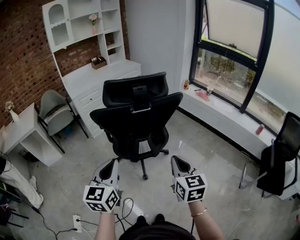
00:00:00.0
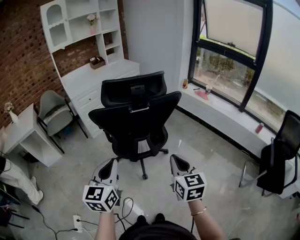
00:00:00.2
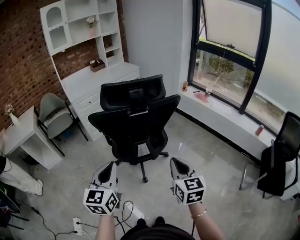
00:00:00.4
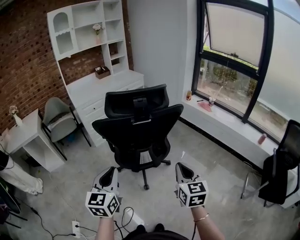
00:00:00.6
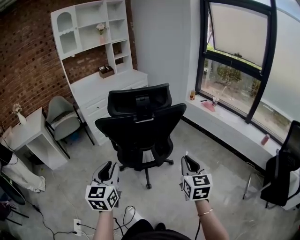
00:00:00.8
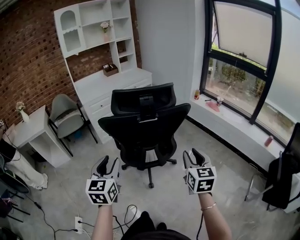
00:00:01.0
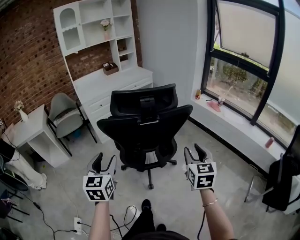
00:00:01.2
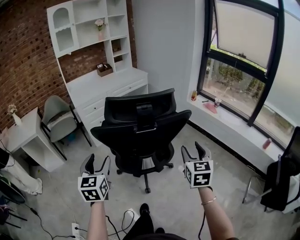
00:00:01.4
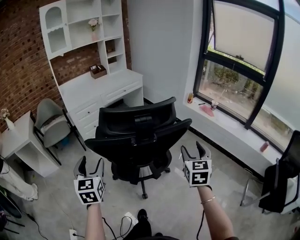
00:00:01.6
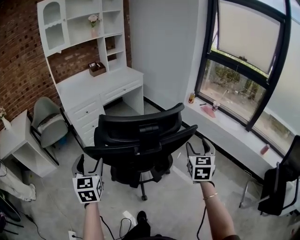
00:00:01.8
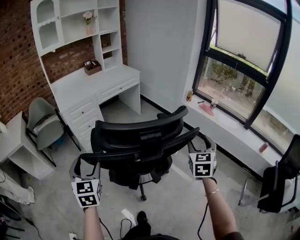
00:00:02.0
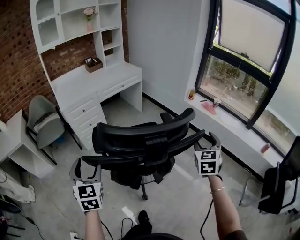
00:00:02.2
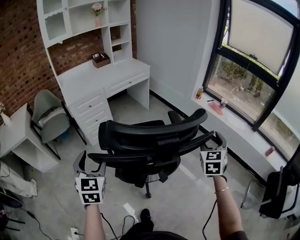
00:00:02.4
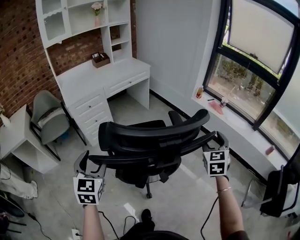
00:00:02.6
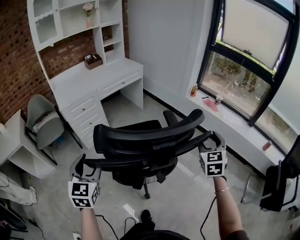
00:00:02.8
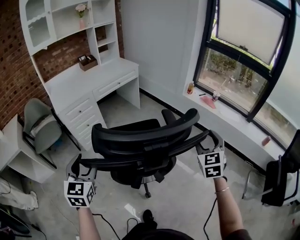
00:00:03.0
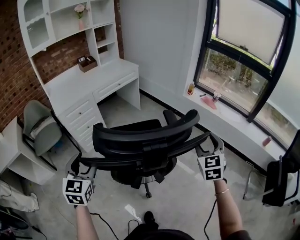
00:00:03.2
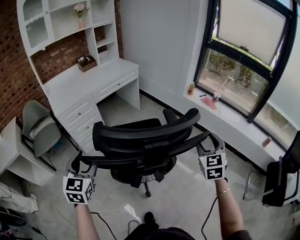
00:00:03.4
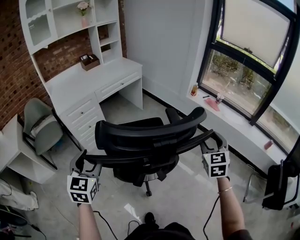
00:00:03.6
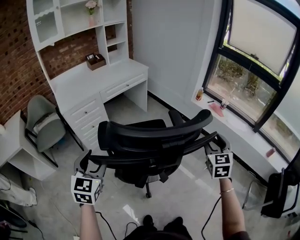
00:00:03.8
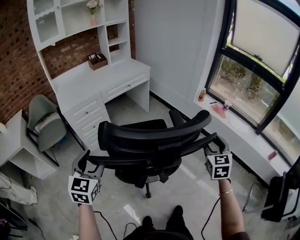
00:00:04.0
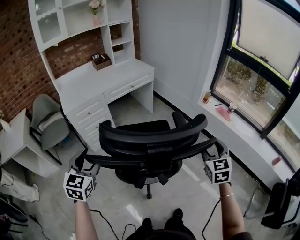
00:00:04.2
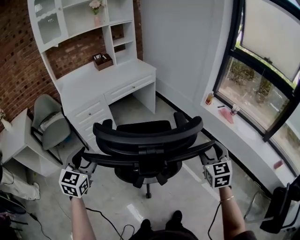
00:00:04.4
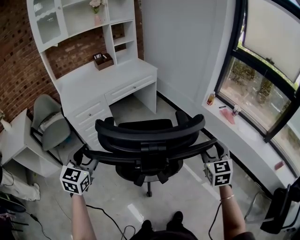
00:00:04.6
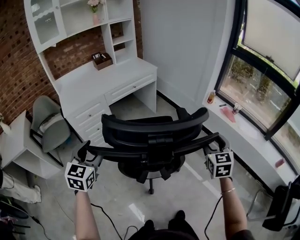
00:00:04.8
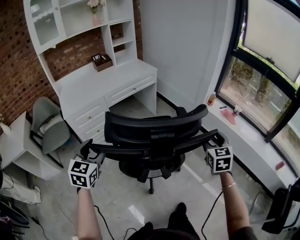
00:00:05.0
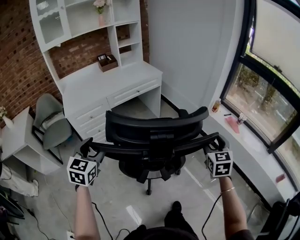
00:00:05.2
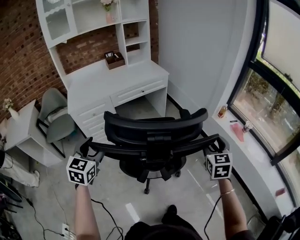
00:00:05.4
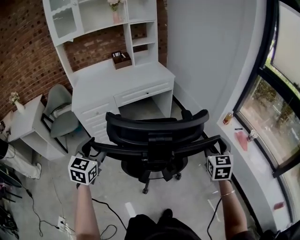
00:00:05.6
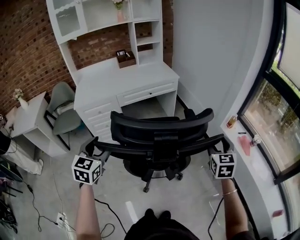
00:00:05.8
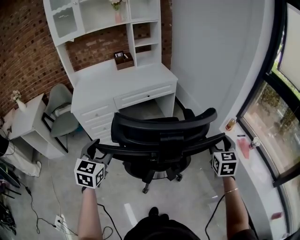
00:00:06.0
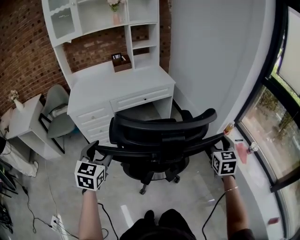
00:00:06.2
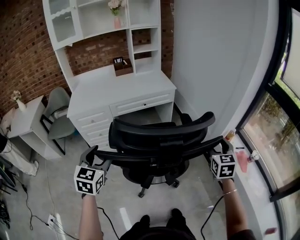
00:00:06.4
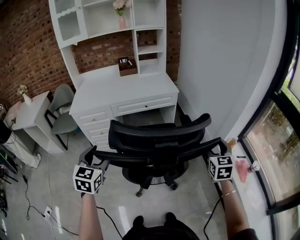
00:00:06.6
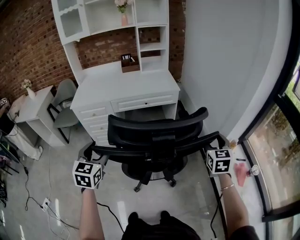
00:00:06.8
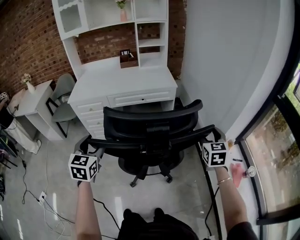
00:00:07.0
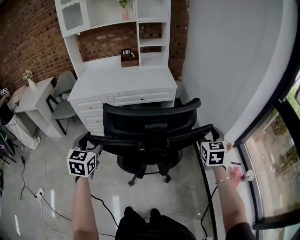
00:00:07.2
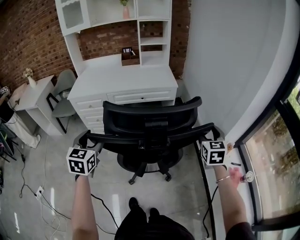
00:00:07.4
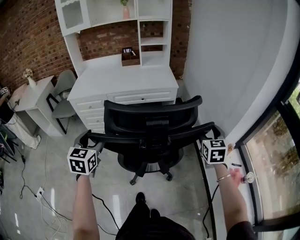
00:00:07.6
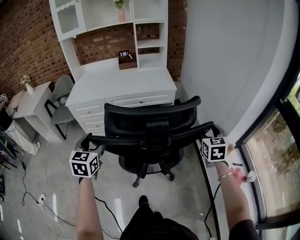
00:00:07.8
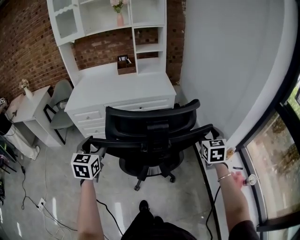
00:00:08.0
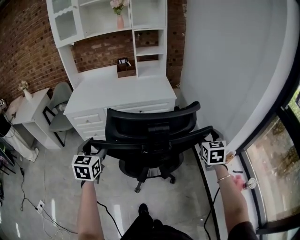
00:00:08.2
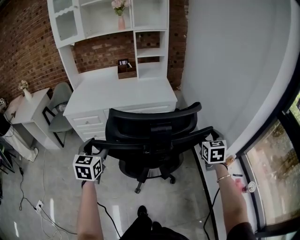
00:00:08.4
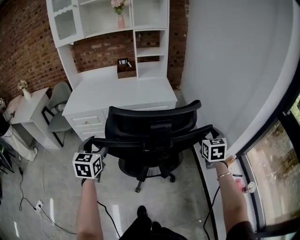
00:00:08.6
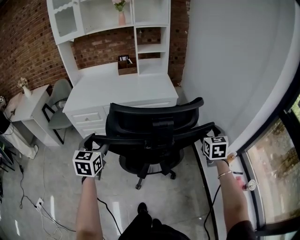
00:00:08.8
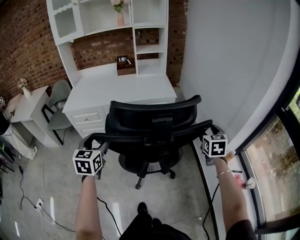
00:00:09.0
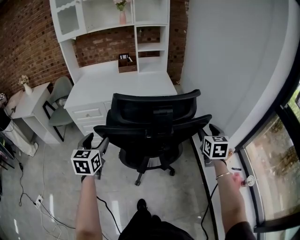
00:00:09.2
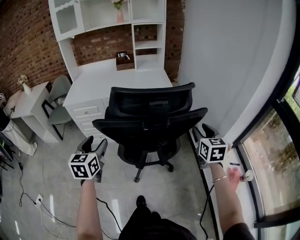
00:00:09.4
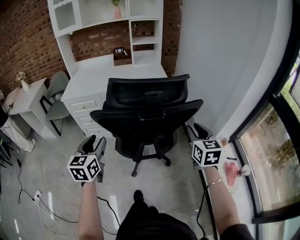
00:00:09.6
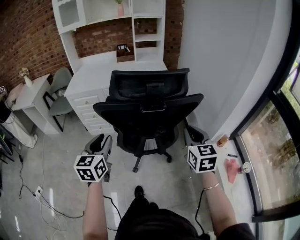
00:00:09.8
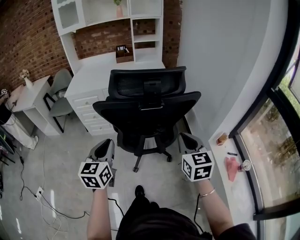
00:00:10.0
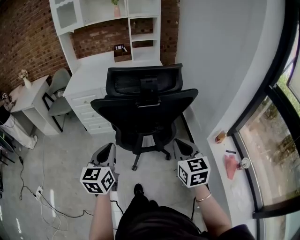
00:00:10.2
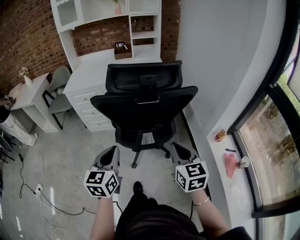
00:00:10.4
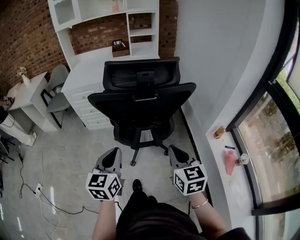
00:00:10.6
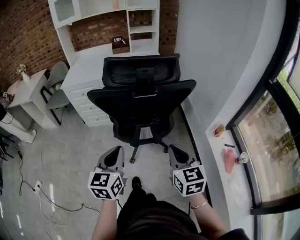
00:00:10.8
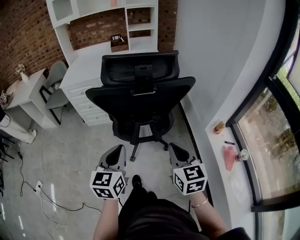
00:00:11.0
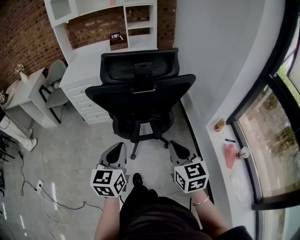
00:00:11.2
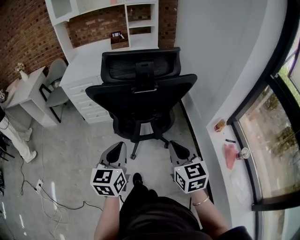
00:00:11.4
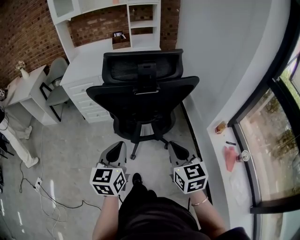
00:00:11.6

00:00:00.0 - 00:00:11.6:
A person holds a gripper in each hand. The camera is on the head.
00:00:00.0 - 00:00:01.4: The left gripper travels forward and to the left by approximately 15 cm, and opens its fingers; the right gripper heads forward and to the right, covering approximately 15 cm, and opens its fingers.
00:00:01.4 - 00:00:02.8: The two grippers go approximately 20 cm forward.
00:00:02.8 - 00:00:04.4: The grippers both shift forward by roughly 15 cm.
00:00:04.4 - 00:00:05.8: The left gripper is displaced forward and to the right by approximately 20 cm, while the right gripper goes some 25 cm forward.
00:00:05.8 - 00:00:07.2: The right gripper heads forward and to the right, covering approximately 30 cm; the left gripper moves to the right and forward, roughly 20 cm, and turns by some 20 degrees.
00:00:07.2 - 00:00:08.8: The two grippers go some 10 cm forward.
00:00:08.8 - 00:00:10.2: The right gripper is displaced backward and to the left by approximately 25 cm, and closes its fingers. The left gripper heads backward and to the right, covering about 20 cm, and closes its fingers.
00:00:10.2 - 00:00:11.6: The left gripper moves to the right, some 5 cm.

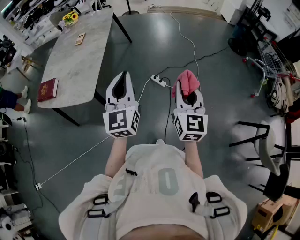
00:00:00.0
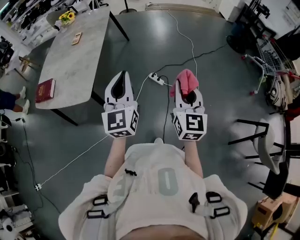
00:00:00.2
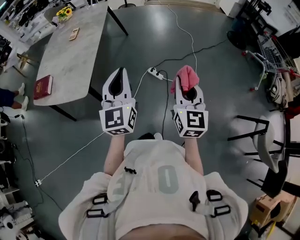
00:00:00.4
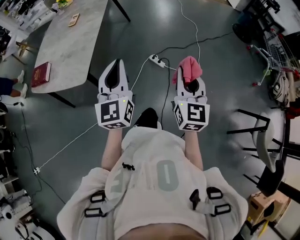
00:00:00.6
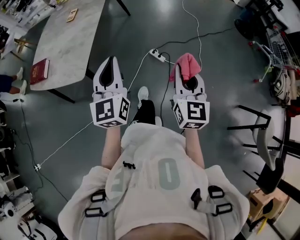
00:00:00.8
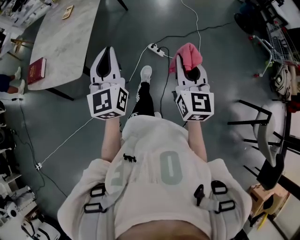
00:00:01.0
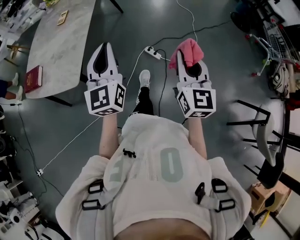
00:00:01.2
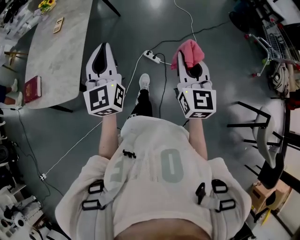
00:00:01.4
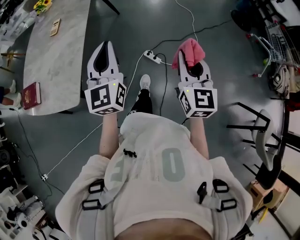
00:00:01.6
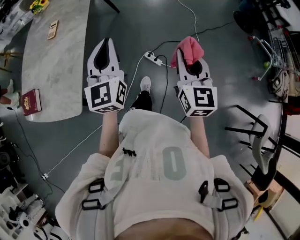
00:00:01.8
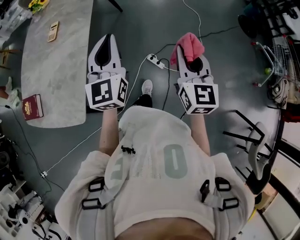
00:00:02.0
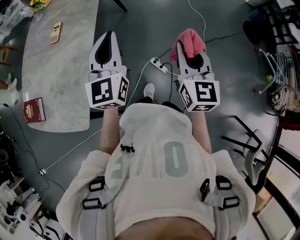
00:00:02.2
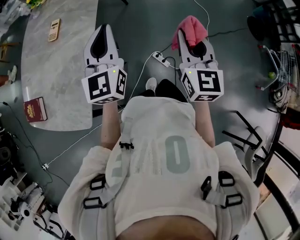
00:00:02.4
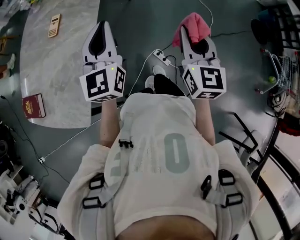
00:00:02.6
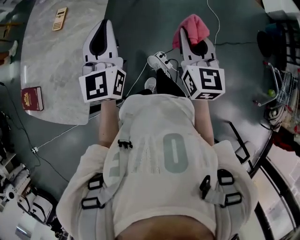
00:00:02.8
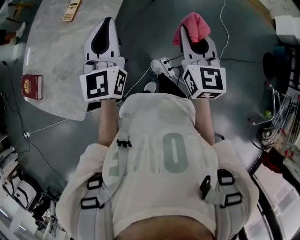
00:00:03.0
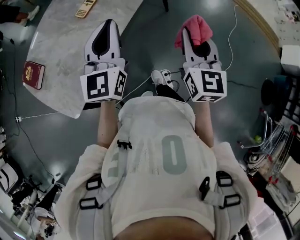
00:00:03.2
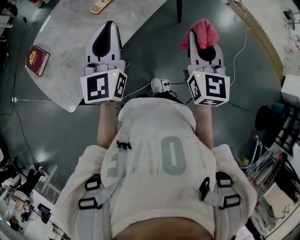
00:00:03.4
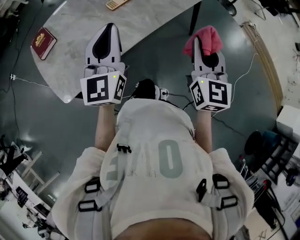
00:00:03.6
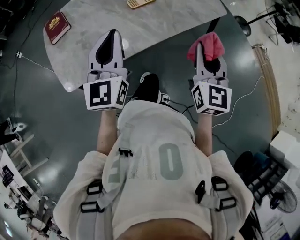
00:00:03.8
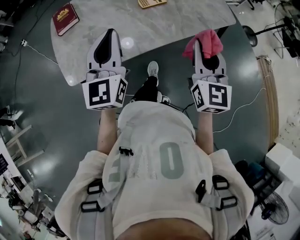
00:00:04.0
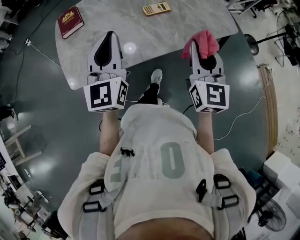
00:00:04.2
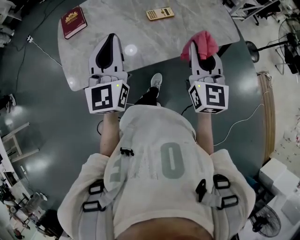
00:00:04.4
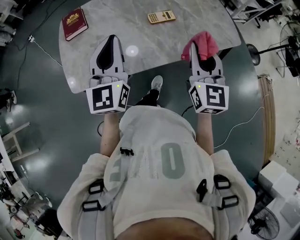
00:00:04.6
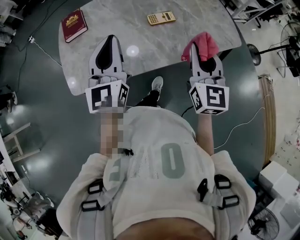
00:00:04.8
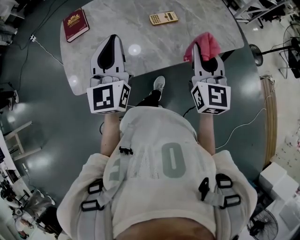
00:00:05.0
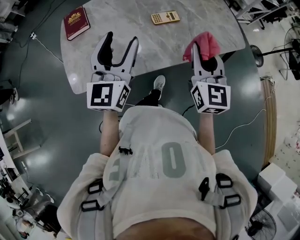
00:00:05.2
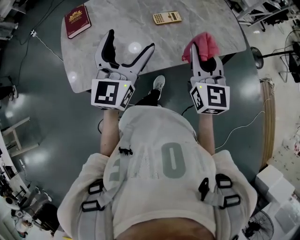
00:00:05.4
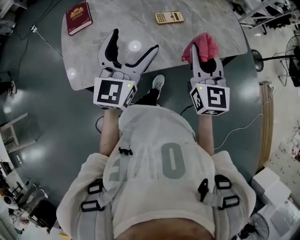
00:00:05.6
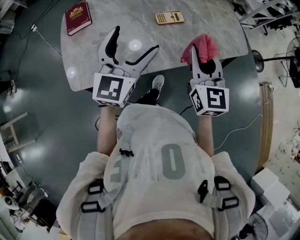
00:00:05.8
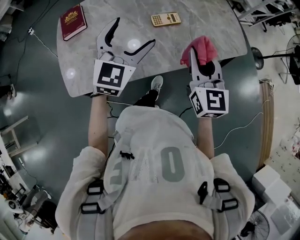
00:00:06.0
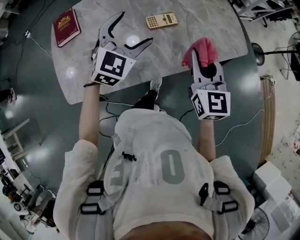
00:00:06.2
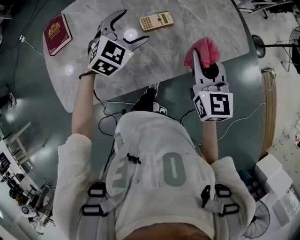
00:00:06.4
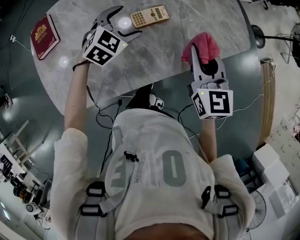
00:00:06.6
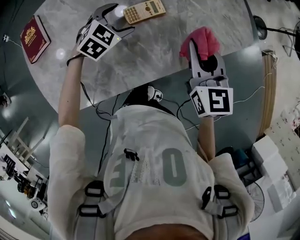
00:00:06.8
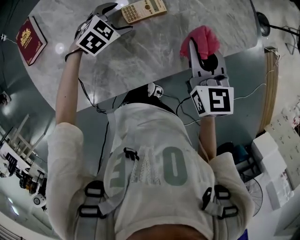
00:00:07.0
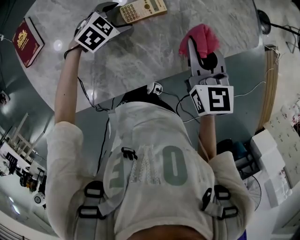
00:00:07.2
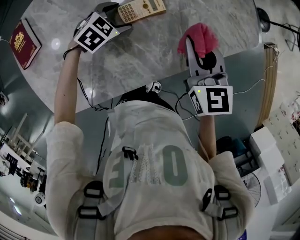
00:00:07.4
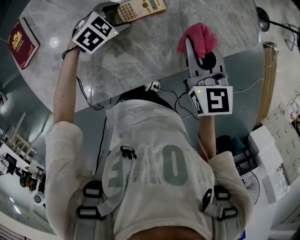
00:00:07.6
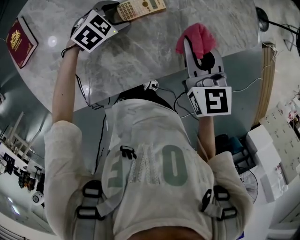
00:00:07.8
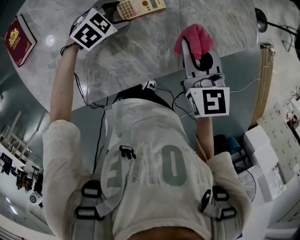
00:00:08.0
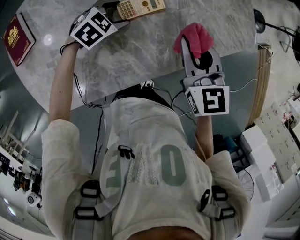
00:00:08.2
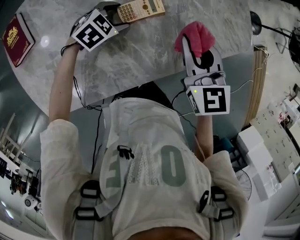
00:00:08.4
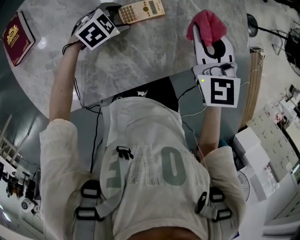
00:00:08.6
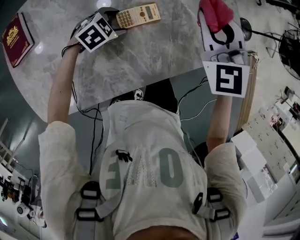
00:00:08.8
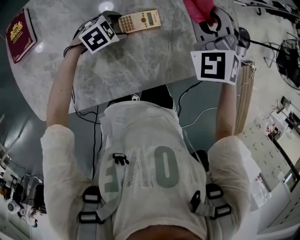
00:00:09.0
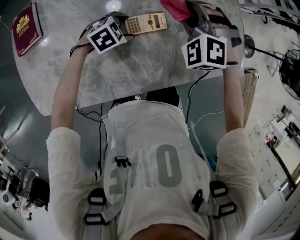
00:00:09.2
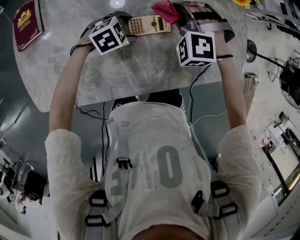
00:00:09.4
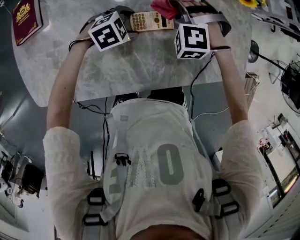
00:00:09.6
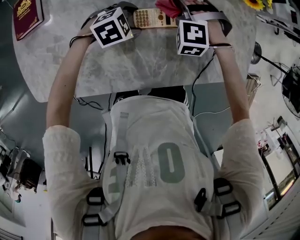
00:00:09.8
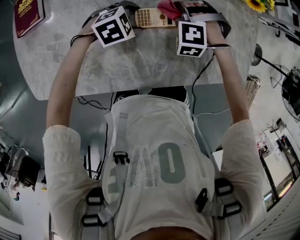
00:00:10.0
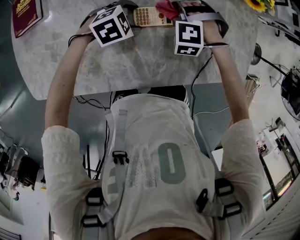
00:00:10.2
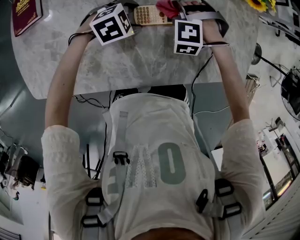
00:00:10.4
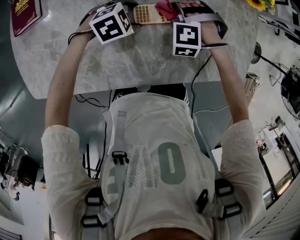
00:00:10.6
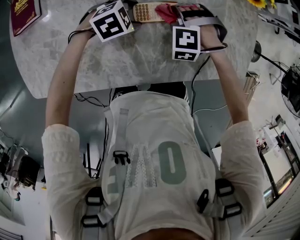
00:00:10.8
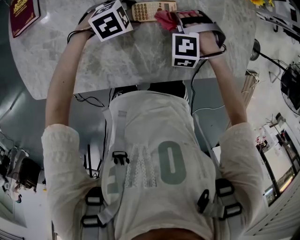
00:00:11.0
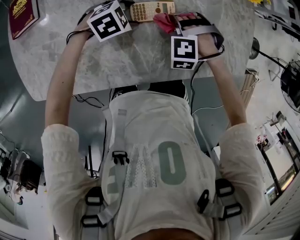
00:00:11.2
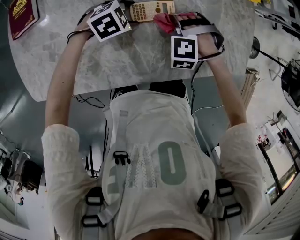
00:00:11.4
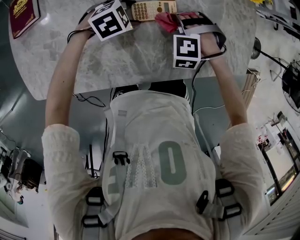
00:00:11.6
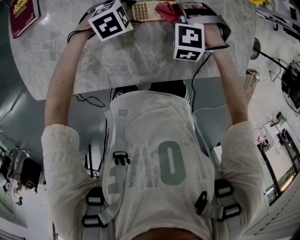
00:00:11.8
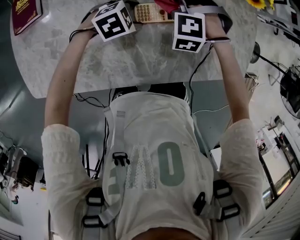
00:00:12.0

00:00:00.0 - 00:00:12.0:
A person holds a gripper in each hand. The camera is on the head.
00:00:00.0 - 00:00:01.6: The two grippers go about 20 cm forward.
00:00:01.6 - 00:00:03.0: The grippers both shift forward by roughly 40 cm. The right gripper turns by some 30 degrees.
00:00:03.0 - 00:00:04.4: The left gripper shifts by some 20 cm, and changes its angle by some 50 degrees; the right gripper ends up about 30 cm from where it was, and turns by some 50 degrees.
00:00:04.4 - 00:00:06.0: The left gripper heads forward, to the right and downward, covering roughly 15 cm, changes its angle by approximately 30 degrees, and opens; the right gripper is displaced forward by approximately 5 cm.
00:00:06.0 - 00:00:07.6: The right gripper heads forward and downward, covering approximately 25 cm. The left gripper is displaced downward and forward by about 40 cm, and angles its fingers downward, by approximately 50 degrees.
00:00:07.6 - 00:00:09.0: The right gripper goes some 15 cm forward, to the left and upward, and twists some 60 degrees counterclockwise, seen from behind.
00:00:09.0 - 00:00:10.4: The right gripper heads downward, covering approximately 20 cm, and tilts its fingers approximately 30 degrees downward.
